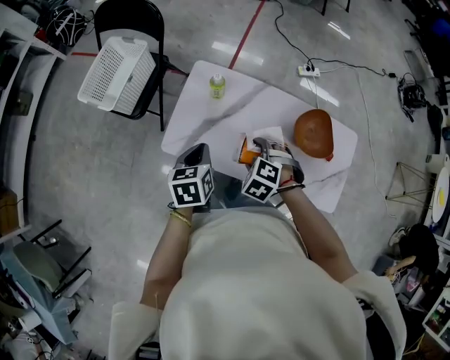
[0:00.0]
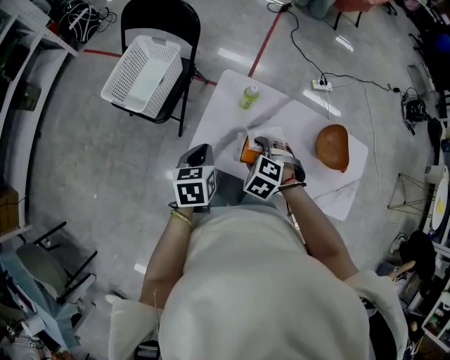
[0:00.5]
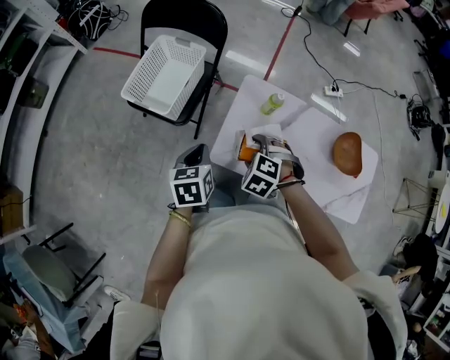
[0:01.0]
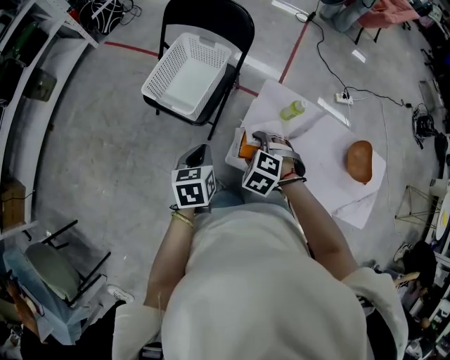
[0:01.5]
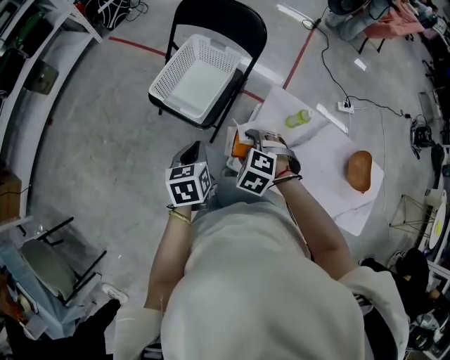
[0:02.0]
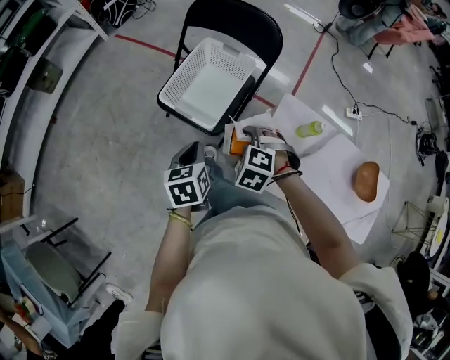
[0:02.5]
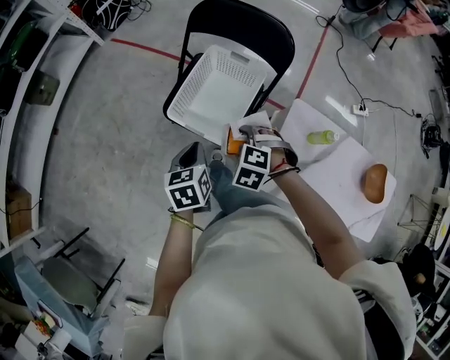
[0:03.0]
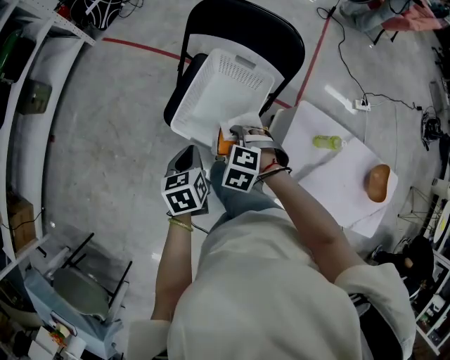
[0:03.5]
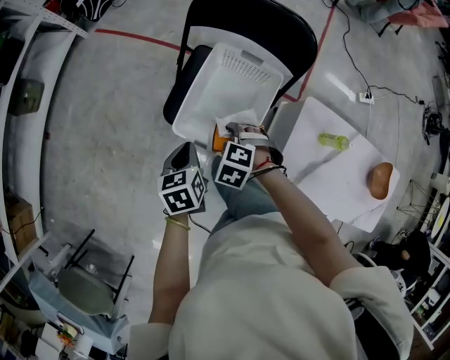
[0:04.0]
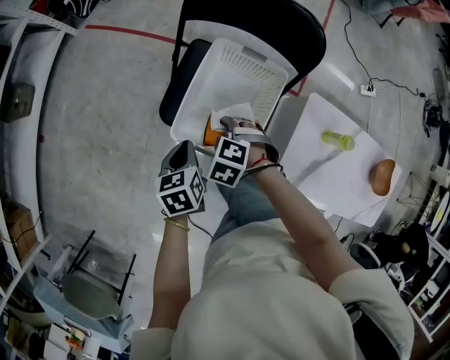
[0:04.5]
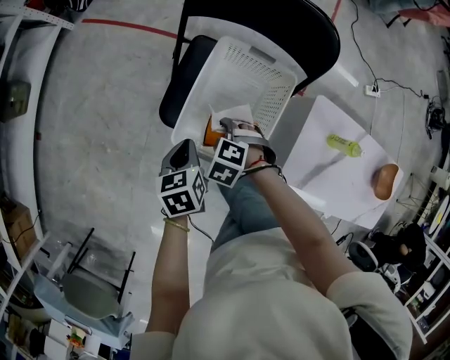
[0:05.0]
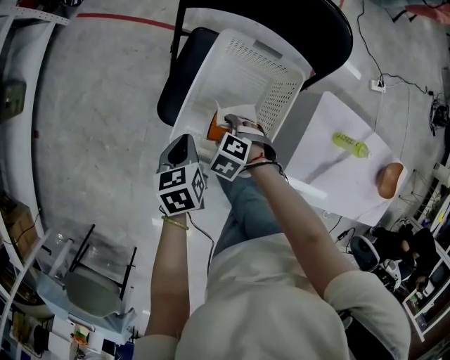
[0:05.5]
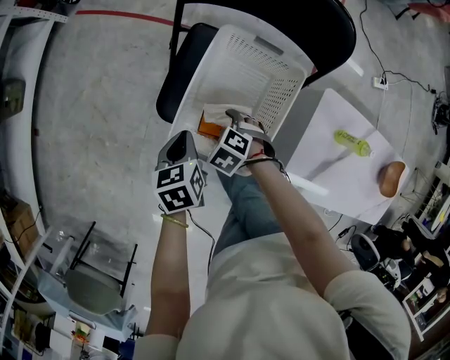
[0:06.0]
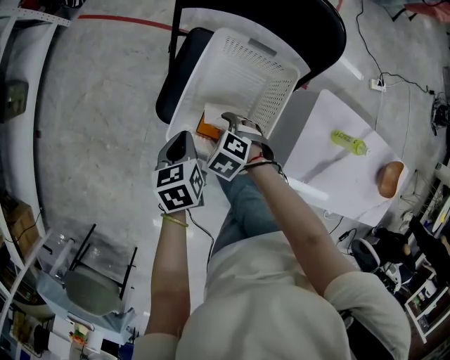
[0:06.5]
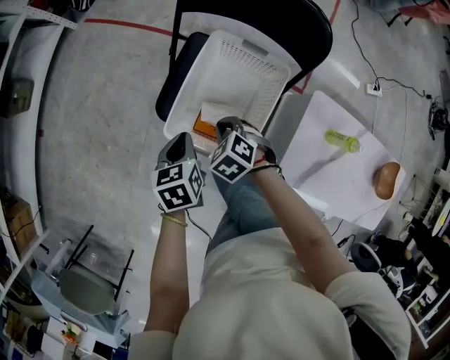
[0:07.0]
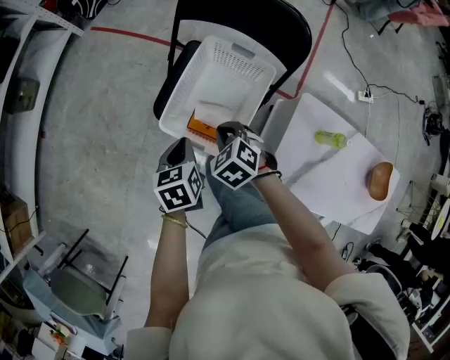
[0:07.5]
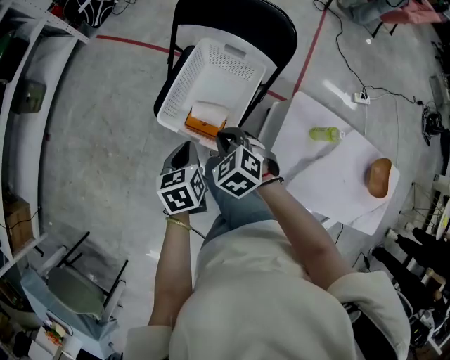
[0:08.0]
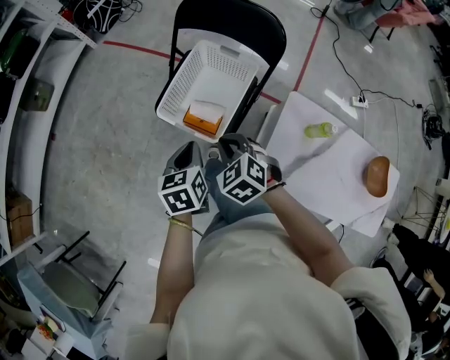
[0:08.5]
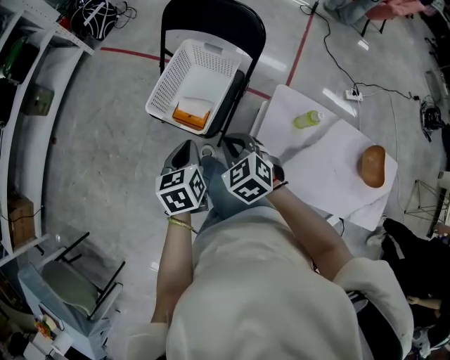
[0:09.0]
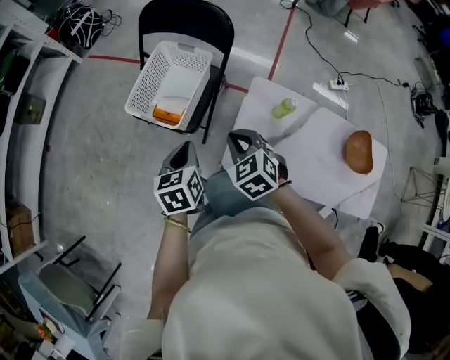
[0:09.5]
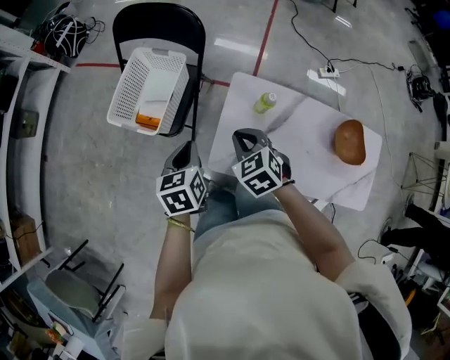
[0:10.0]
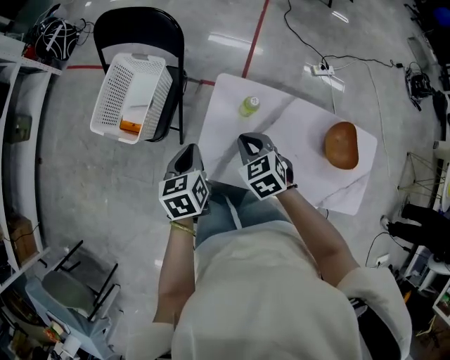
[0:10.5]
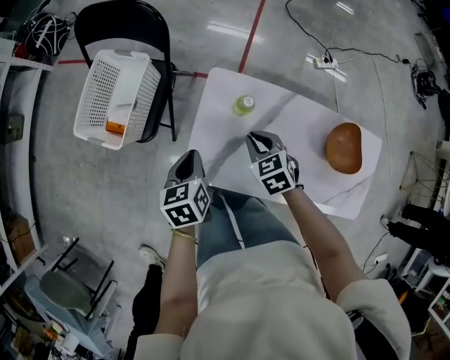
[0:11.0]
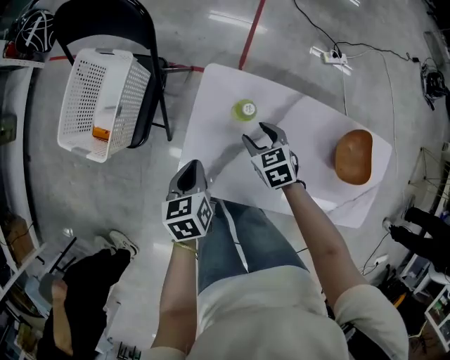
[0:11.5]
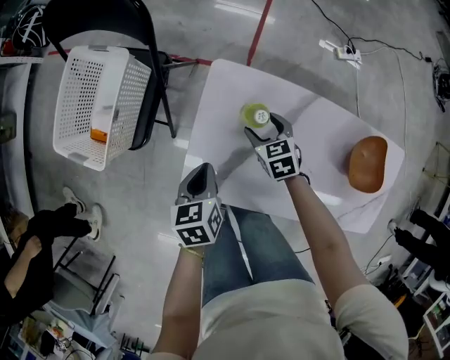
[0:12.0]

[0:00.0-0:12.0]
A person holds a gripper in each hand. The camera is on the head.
0:00.0 to 0:02.0: Both grippers travel together to the left, some 40 cm.
0:02.0 to 0:04.0: The left gripper moves roughly 25 cm. The right gripper changes place by about 30 cm.
0:04.0 to 0:06.0: The left gripper shifts about 10 cm downward, while the right gripper heads downward, covering roughly 15 cm.
0:06.0 to 0:08.0: The left gripper shifts by some 15 cm. Meanwhile the right gripper goes some 20 cm upward, turns by approximately 20 degrees, and closes its fingers.
0:08.0 to 0:10.0: The grippers both shift to the right and backward by approximately 30 cm.
0:10.0 to 0:12.0: Both grippers travel together downward and to the right, roughly 30 cm. The right gripper opens.

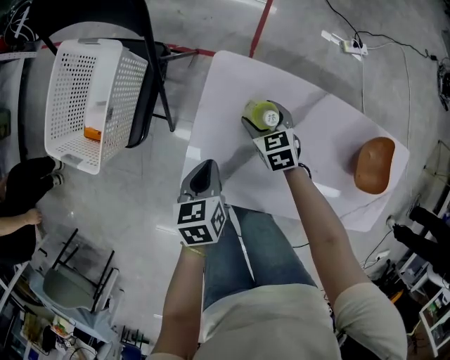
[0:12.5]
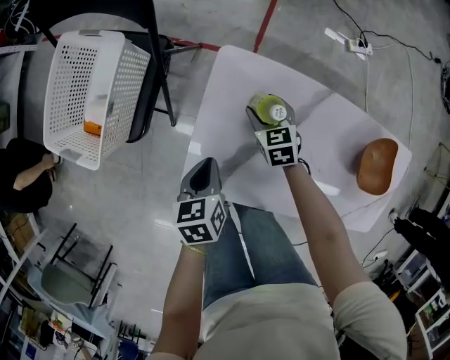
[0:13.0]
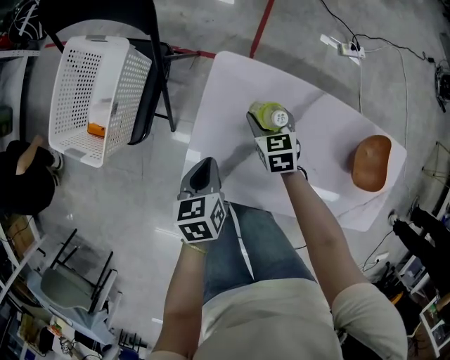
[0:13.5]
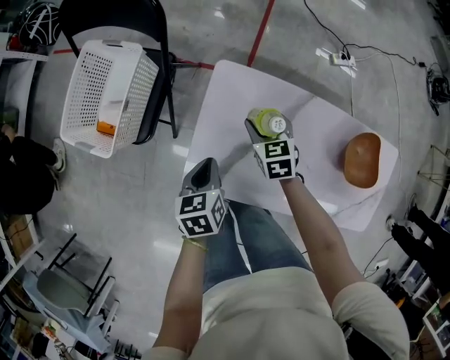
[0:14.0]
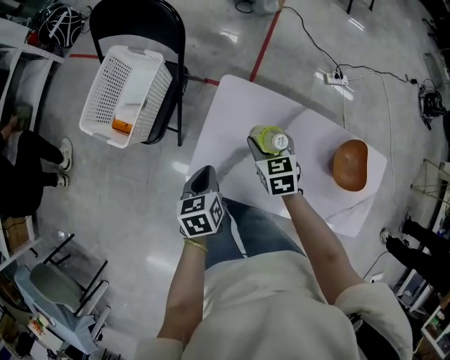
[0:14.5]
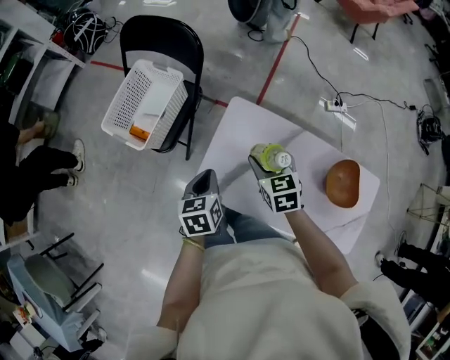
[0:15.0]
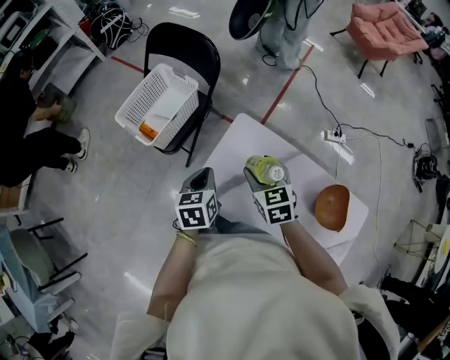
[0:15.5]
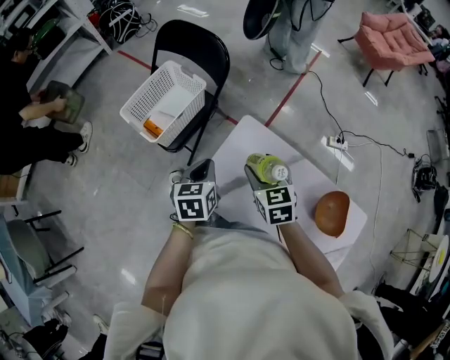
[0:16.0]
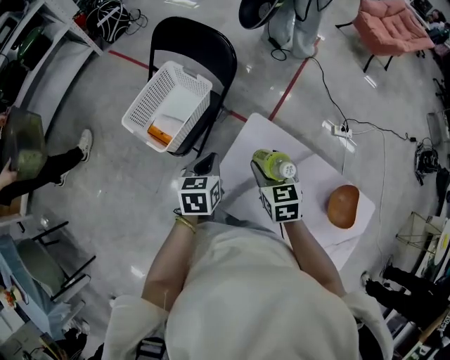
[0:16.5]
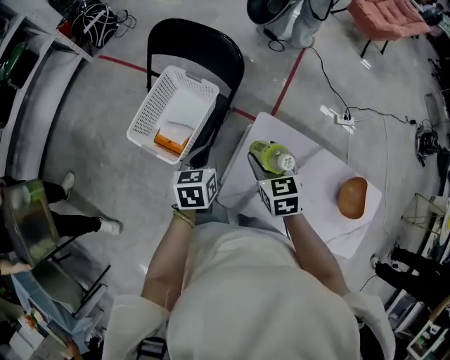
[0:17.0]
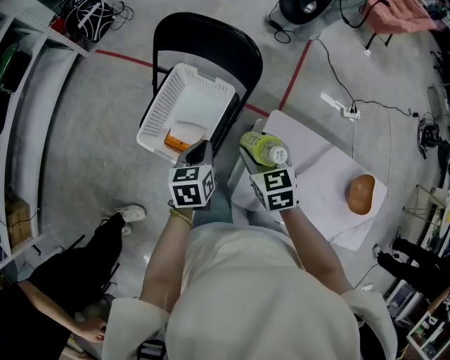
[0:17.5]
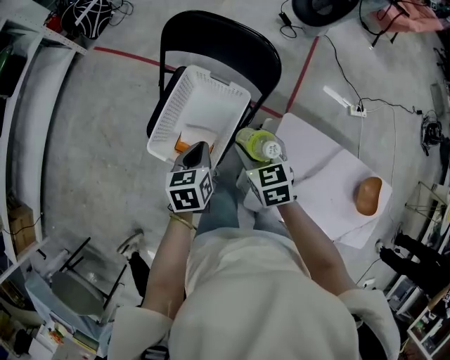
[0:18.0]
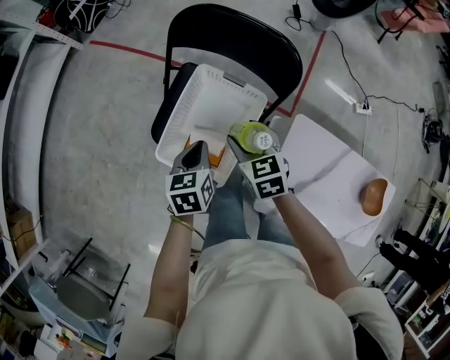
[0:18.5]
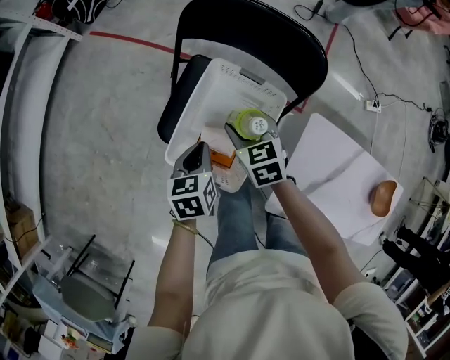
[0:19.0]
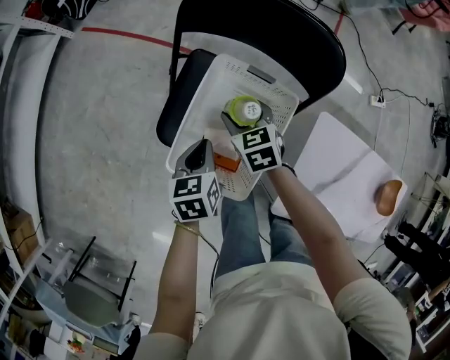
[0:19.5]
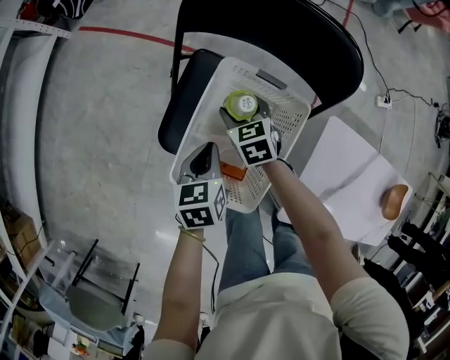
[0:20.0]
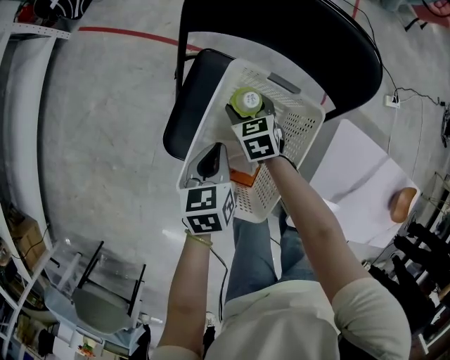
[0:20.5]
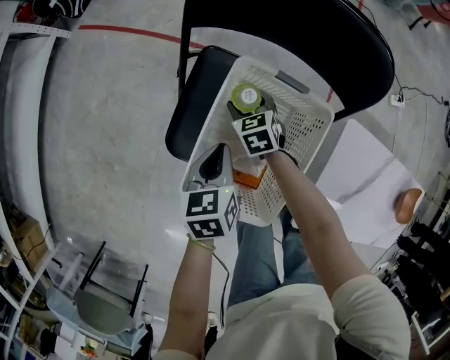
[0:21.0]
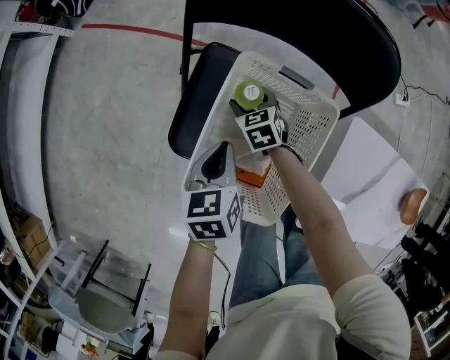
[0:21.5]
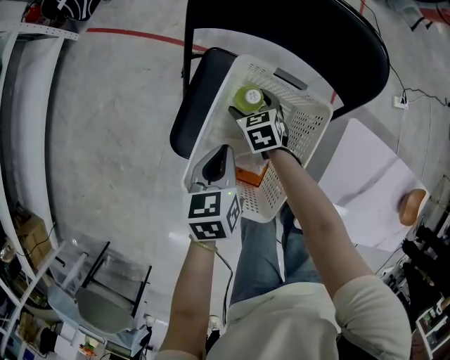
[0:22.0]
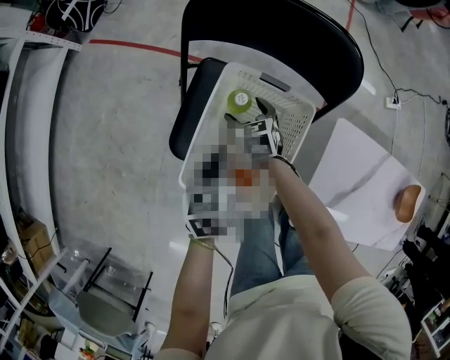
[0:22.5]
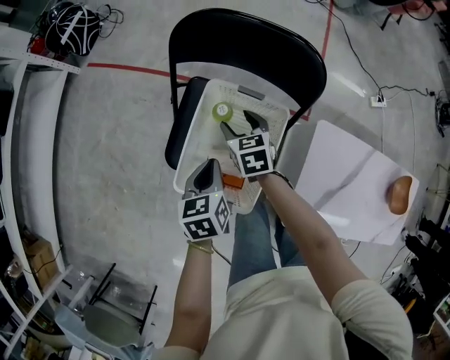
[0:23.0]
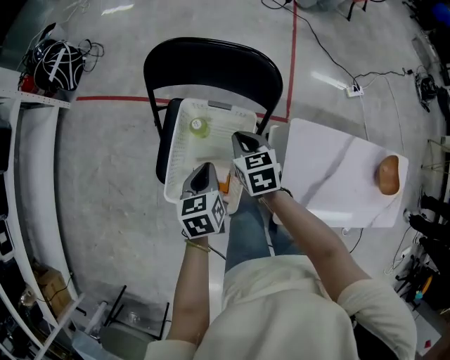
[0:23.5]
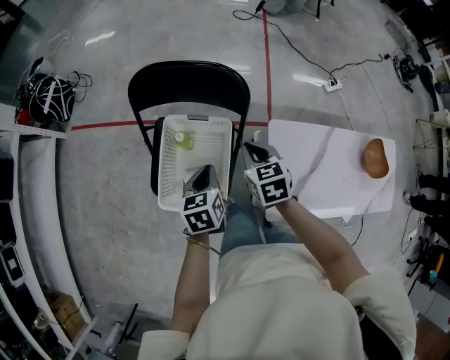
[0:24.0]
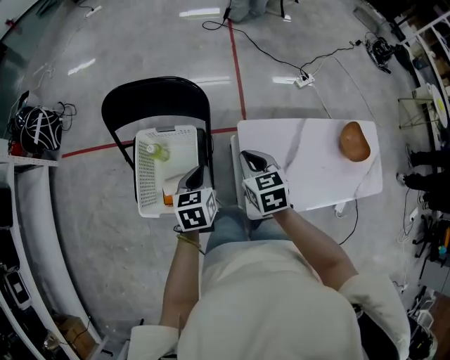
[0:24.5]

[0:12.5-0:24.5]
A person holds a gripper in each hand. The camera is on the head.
0:12.5 to 0:14.5: The left gripper goes roughly 10 cm upward and backward. Meanwhile the right gripper is displaced upward by approximately 20 cm.
0:14.5 to 0:16.5: The left gripper is displaced upward, forward and to the left by approximately 15 cm; the right gripper travels upward and to the left by roughly 15 cm.
0:16.5 to 0:18.5: The grippers both shift to the left and forward by some 35 cm.
0:18.5 to 0:20.5: The left gripper heads downward and forward, covering roughly 15 cm. Meanwhile the right gripper is displaced downward and forward by about 25 cm.
0:20.5 to 0:22.5: There are only small adjustments of the grippers.
0:22.5 to 0:24.5: The left gripper goes some 25 cm to the right and upward, and swivels roughly 30 degrees. Meanwhile the right gripper is displaced upward, to the right and backward by approximately 40 cm, changes its angle by approximately 30 degrees, and closes up.

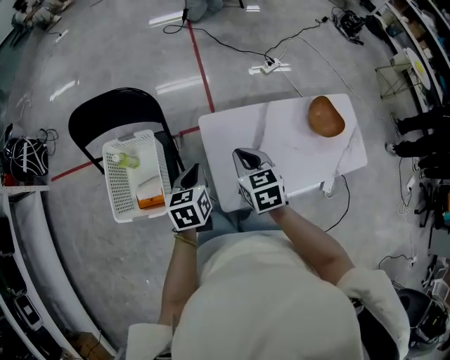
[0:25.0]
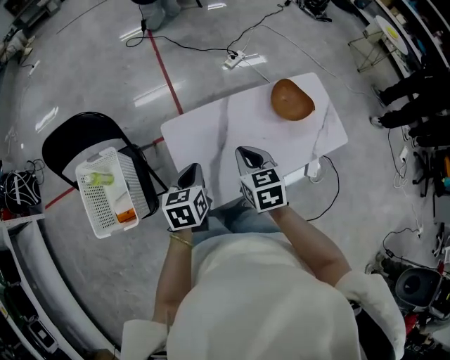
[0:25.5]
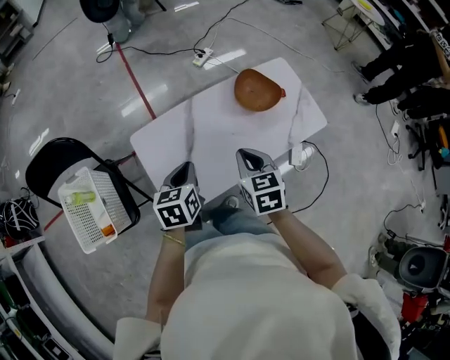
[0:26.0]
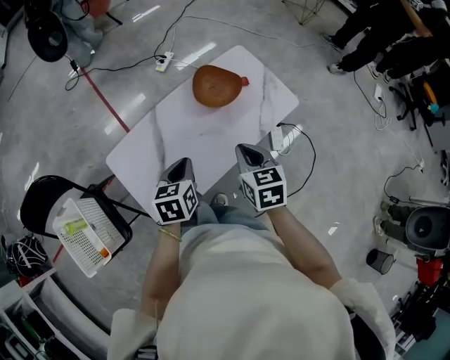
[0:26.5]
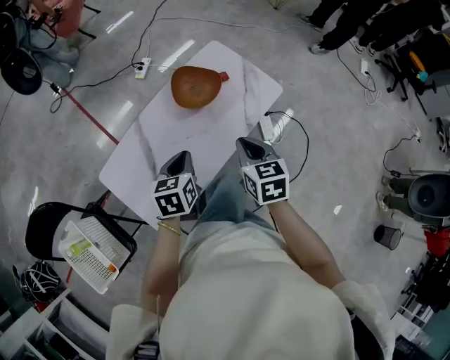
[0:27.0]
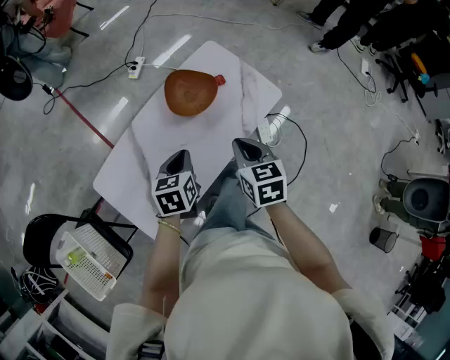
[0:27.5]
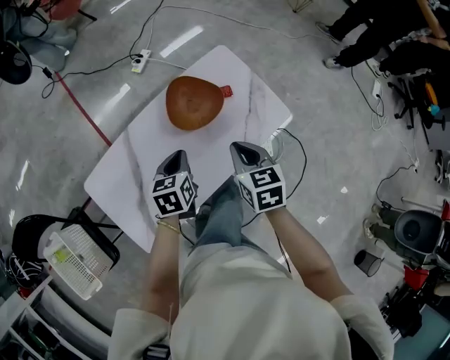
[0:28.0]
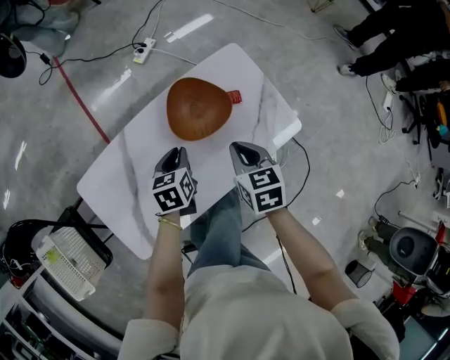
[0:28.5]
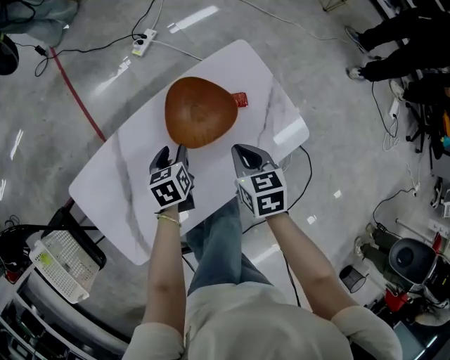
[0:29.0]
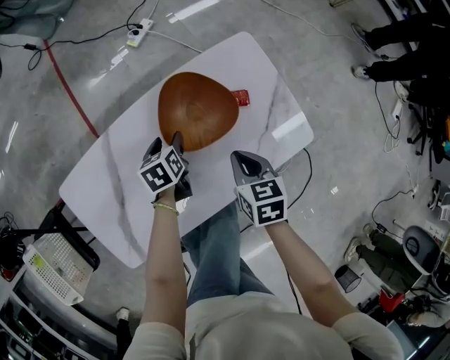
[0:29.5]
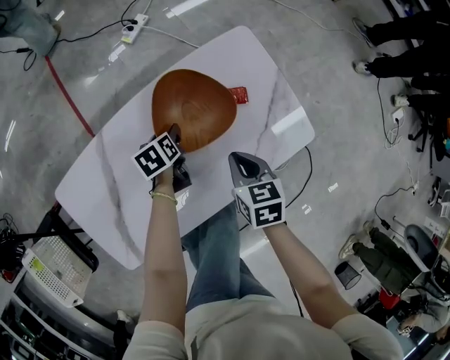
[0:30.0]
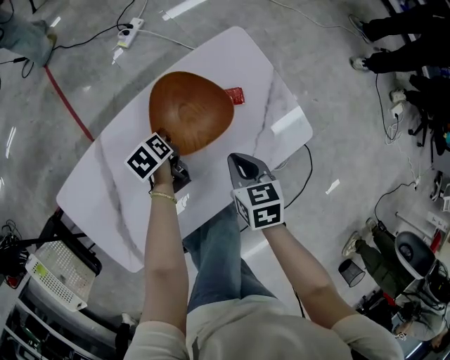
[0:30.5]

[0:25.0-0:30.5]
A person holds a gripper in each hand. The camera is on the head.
0:25.0 to 0:27.0: Both grippers are carried roughly 50 cm. The right gripper changes its angle by approximately 40 degrees; the left gripper changes its angle by about 40 degrees.
0:27.0 to 0:28.5: Both grippers travel together forward and downward, approximately 25 cm.
0:28.5 to 0:30.5: The left gripper is displaced downward and forward by about 20 cm, changes its angle by some 30 degrees, and opens, then closes once more, while the right gripper is displaced downward by some 15 cm.
